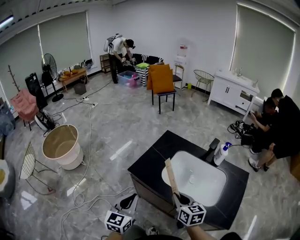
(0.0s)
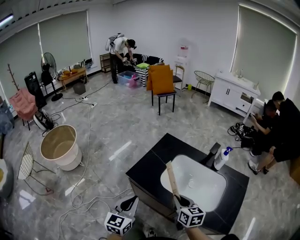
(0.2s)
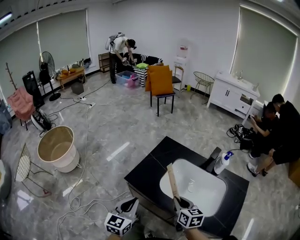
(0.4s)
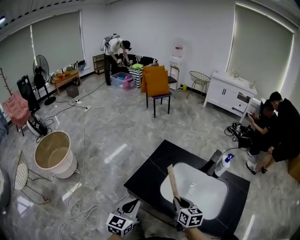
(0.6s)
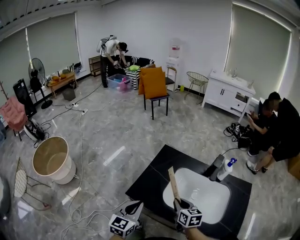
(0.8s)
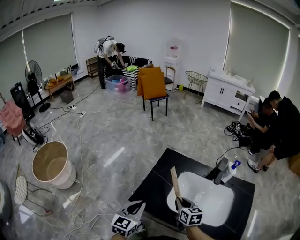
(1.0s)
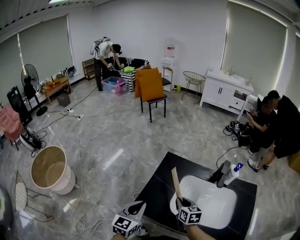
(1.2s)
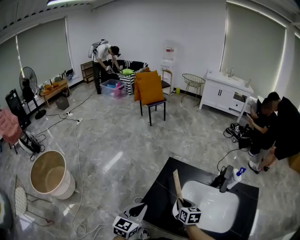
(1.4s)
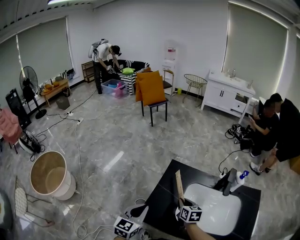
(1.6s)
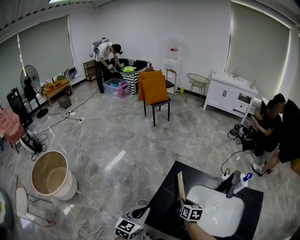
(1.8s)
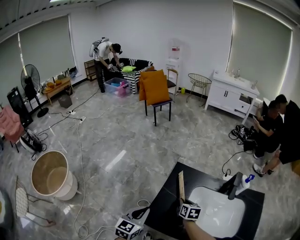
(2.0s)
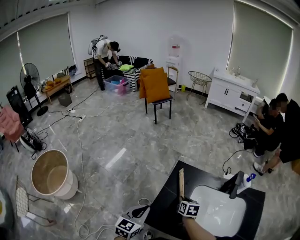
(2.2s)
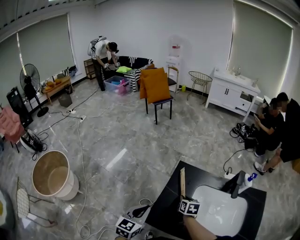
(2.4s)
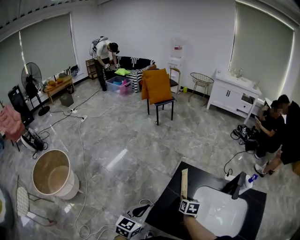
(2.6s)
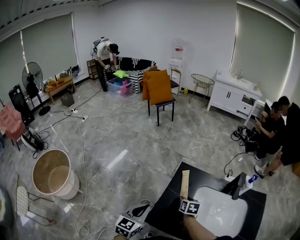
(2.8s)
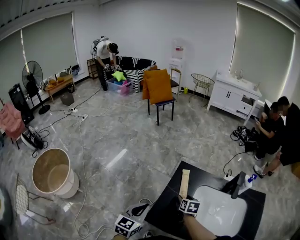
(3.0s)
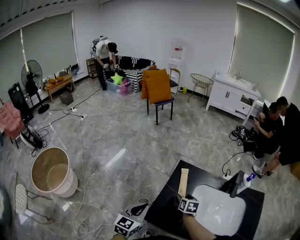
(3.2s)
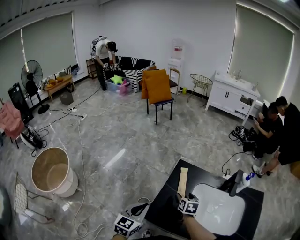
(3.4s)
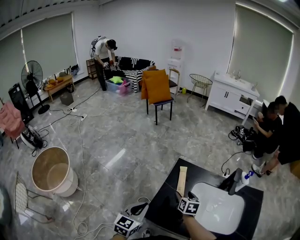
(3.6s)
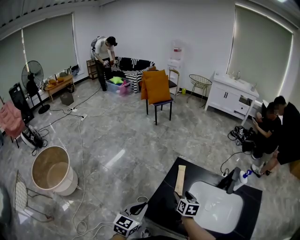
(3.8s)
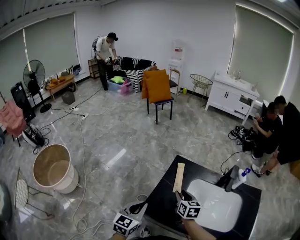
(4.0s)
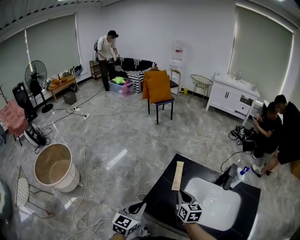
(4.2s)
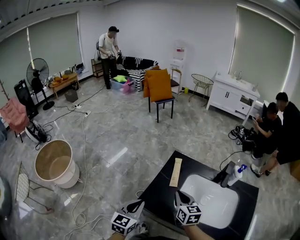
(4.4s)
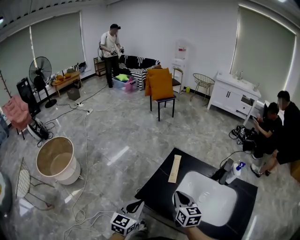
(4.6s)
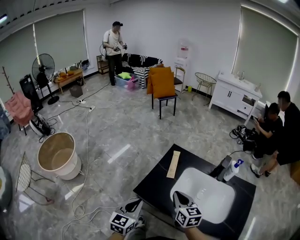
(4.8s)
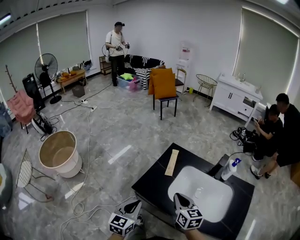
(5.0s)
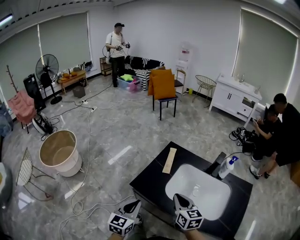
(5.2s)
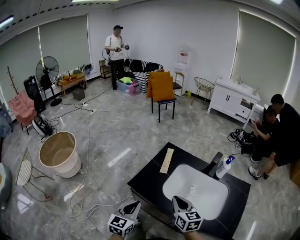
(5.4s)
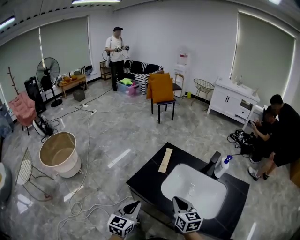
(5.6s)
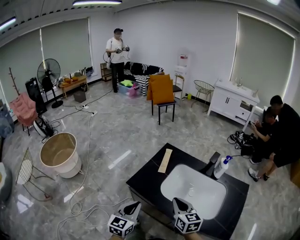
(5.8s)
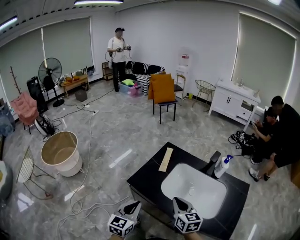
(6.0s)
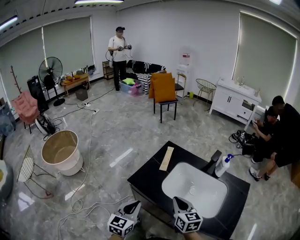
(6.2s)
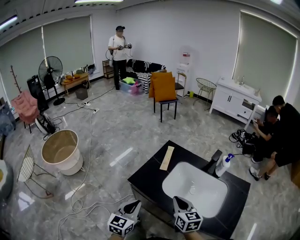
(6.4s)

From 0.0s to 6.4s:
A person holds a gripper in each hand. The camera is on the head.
From 0.0s to 1.6s: Both grippers move forward, roughly 25 cm. The right gripper changes its angle by some 20 degrees.
From 1.6s to 3.2s: The right gripper ends up roughly 5 cm from where it was, and opens up. Meanwhile the left gripper ends up roughly 5 cm from where it was.
From 3.2s to 4.8s: The left gripper moves backward and to the right, approximately 15 cm, while the right gripper shifts some 25 cm backward and upward, changes its angle by about 30 degrees, and closes.
From 4.8s to 6.4s: The grippers both shift backward and to the right by some 10 cm.

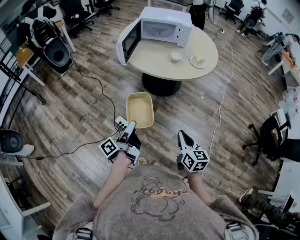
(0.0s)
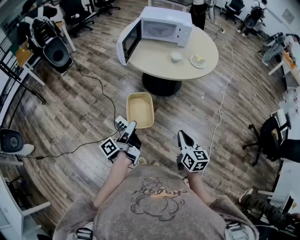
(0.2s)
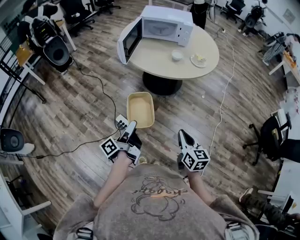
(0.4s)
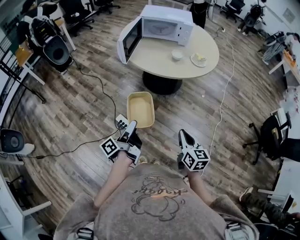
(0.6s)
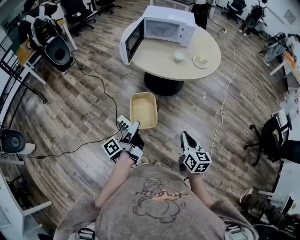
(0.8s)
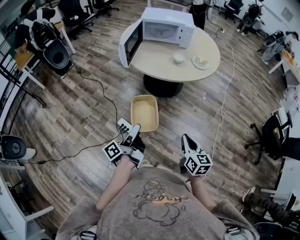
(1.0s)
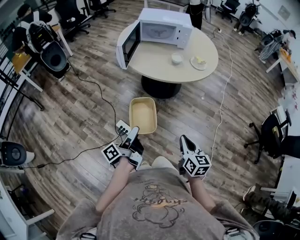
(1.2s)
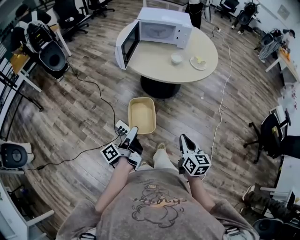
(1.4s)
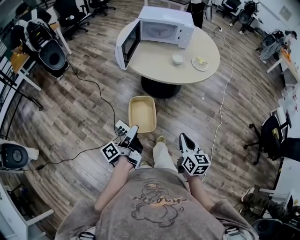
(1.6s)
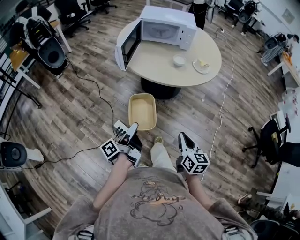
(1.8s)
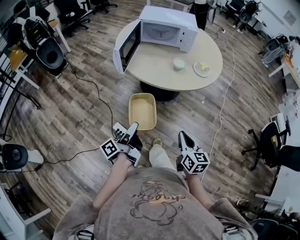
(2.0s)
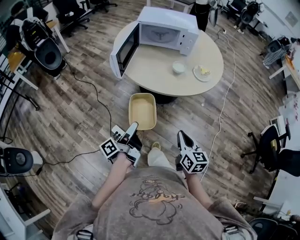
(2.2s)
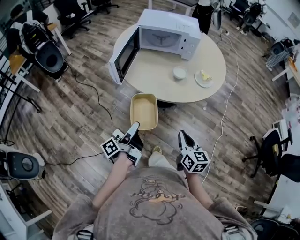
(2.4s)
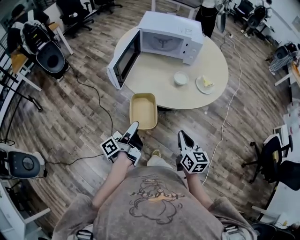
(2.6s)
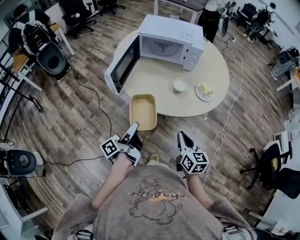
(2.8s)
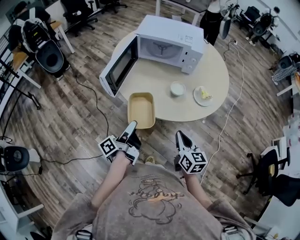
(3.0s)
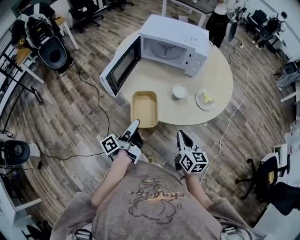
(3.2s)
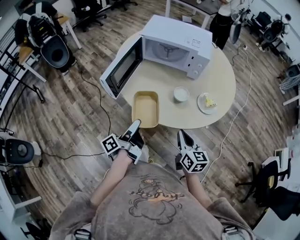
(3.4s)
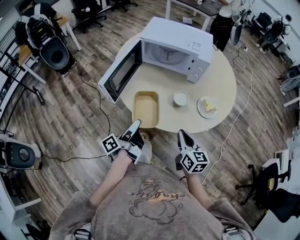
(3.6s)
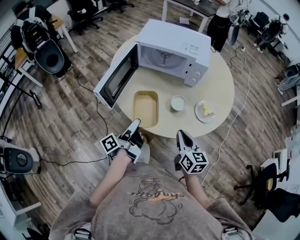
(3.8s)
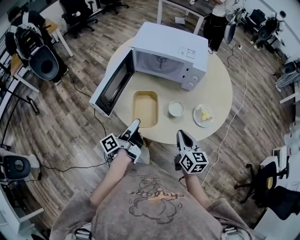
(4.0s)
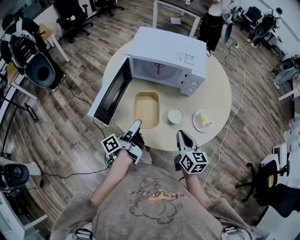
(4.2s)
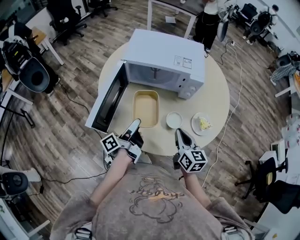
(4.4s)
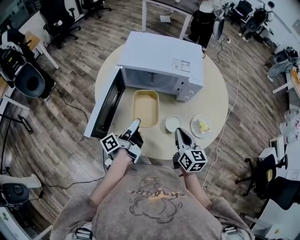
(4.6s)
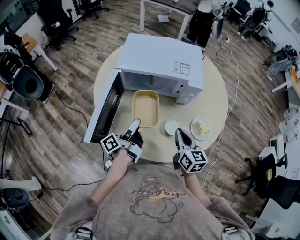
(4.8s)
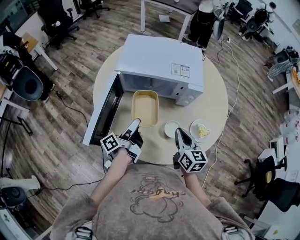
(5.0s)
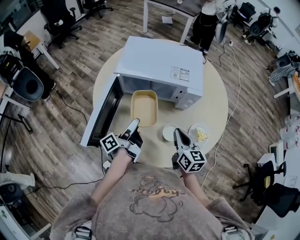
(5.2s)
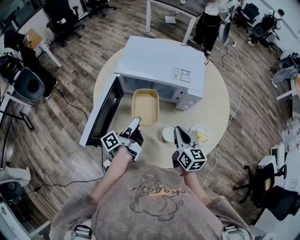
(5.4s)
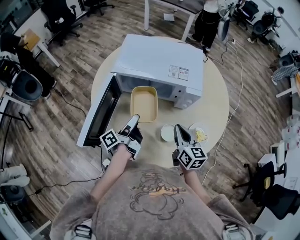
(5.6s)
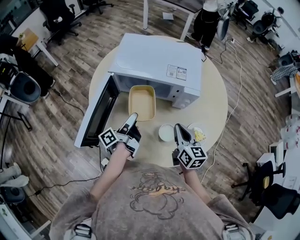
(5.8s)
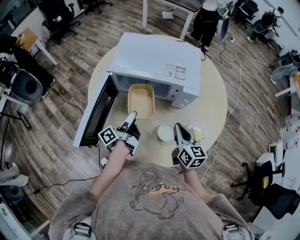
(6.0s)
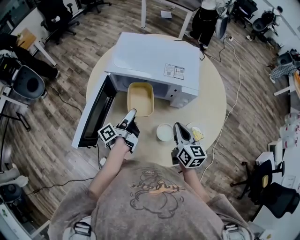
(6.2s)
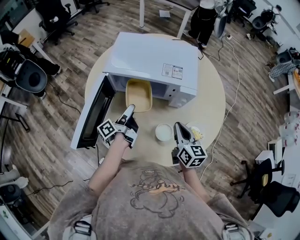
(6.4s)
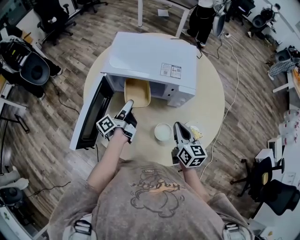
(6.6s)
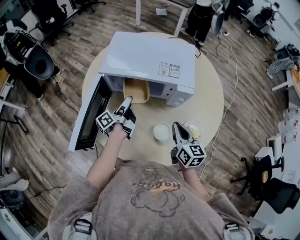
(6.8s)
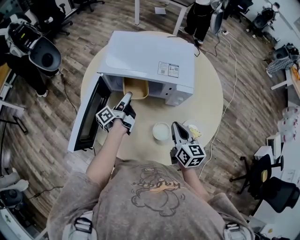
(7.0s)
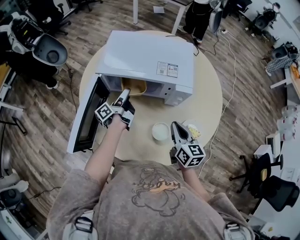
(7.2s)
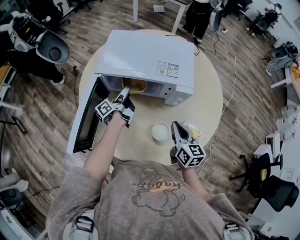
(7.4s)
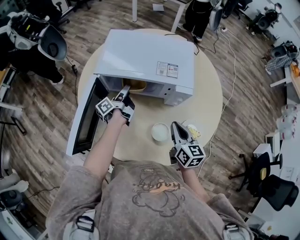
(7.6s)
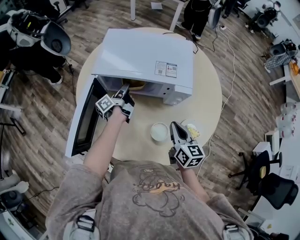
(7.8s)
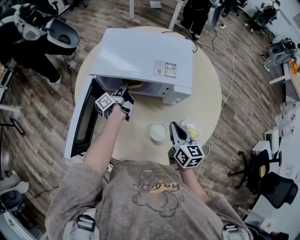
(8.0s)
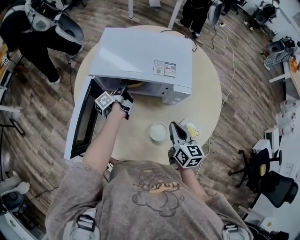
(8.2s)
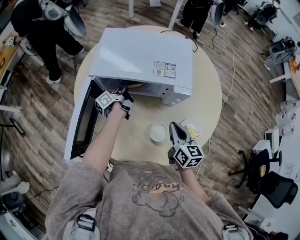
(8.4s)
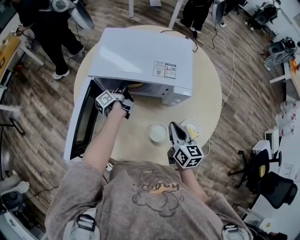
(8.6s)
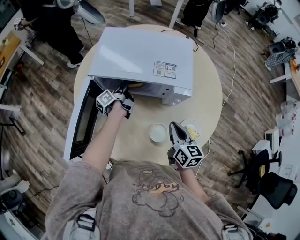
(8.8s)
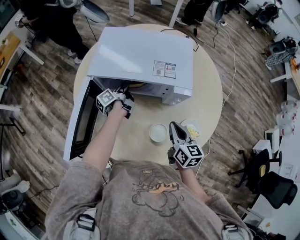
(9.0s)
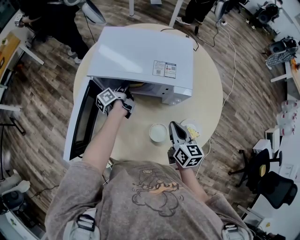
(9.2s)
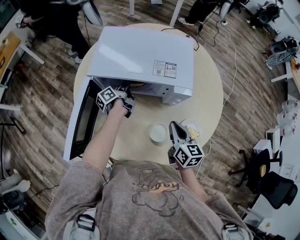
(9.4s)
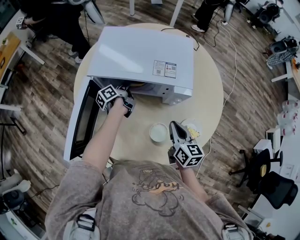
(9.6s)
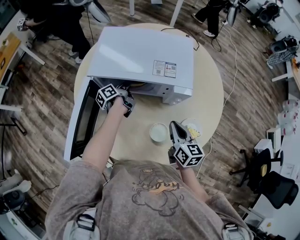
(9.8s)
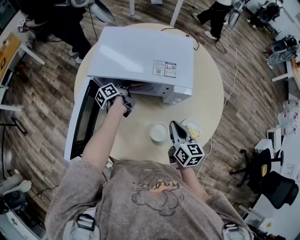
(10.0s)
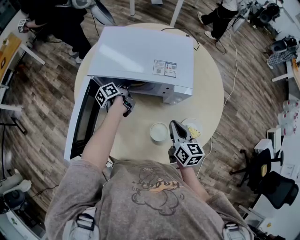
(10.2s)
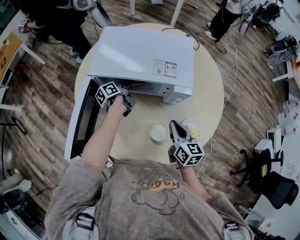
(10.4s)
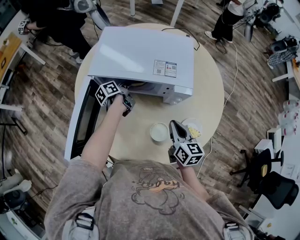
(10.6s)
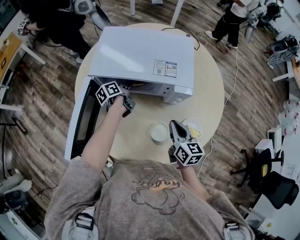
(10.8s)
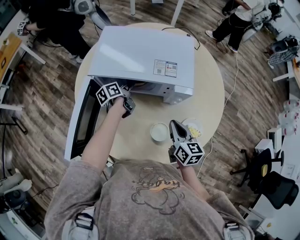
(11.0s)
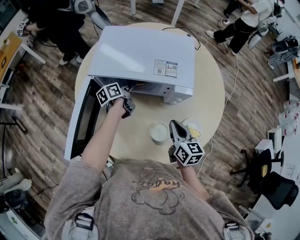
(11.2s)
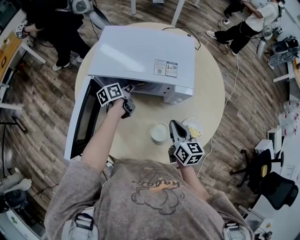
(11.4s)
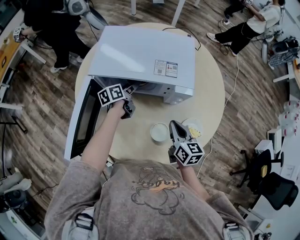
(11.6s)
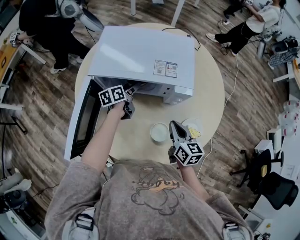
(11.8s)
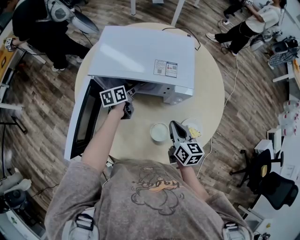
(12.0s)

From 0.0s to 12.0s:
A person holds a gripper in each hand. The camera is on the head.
From 0.0s to 1.6s: There are only small adjustments of the grippers.
From 1.6s to 3.0s: Both grippers travel together forward, roughly 30 cm.
From 3.0s to 4.4s: The grippers both shift forward by some 20 cm.
From 4.4s to 6.0s: Both grippers travel together forward, about 10 cm.
From 6.0s to 7.6s: The left gripper travels forward by about 15 cm.
From 7.6s to 9.0s: The left gripper moves approximately 5 cm.
From 9.0s to 10.4s: There are only small adjustments of the grippers.
From 10.4s to 12.0s: The left gripper turns by about 30 degrees, and opens up.

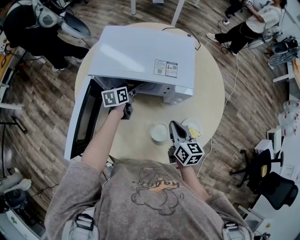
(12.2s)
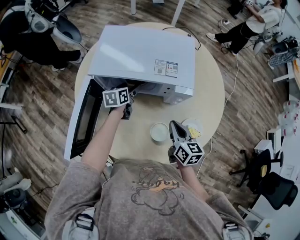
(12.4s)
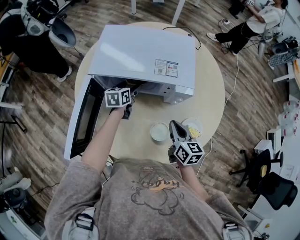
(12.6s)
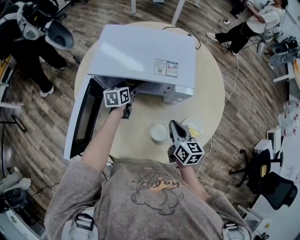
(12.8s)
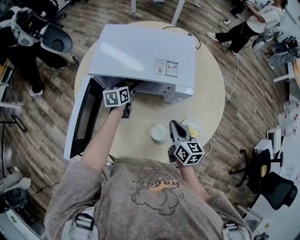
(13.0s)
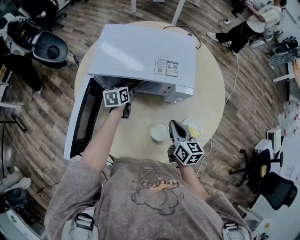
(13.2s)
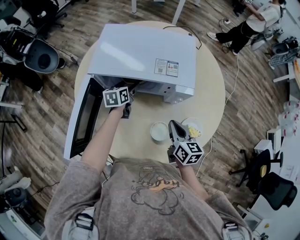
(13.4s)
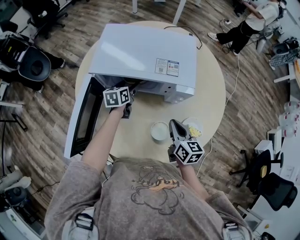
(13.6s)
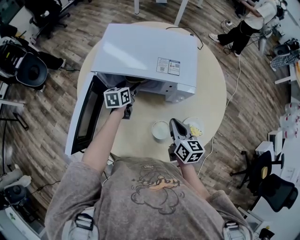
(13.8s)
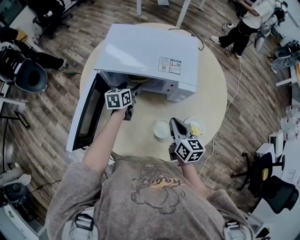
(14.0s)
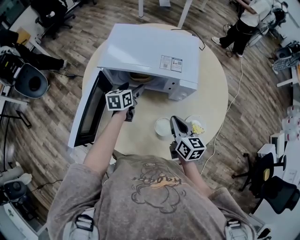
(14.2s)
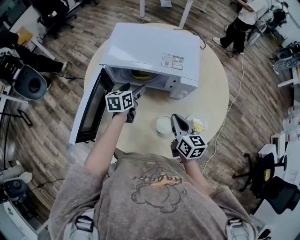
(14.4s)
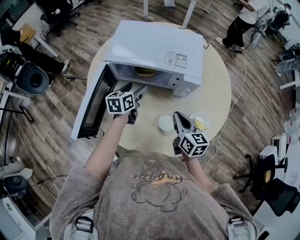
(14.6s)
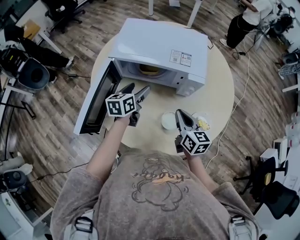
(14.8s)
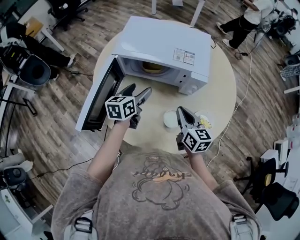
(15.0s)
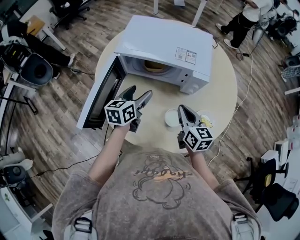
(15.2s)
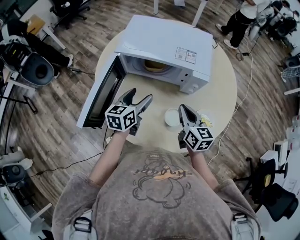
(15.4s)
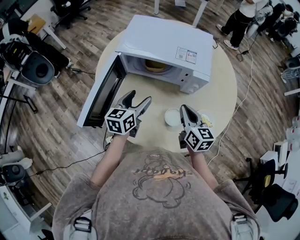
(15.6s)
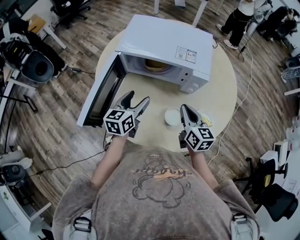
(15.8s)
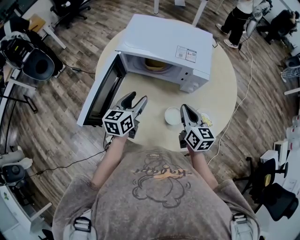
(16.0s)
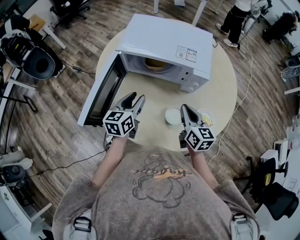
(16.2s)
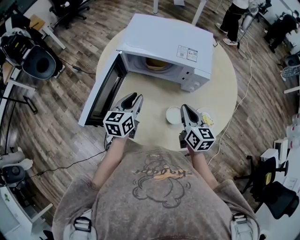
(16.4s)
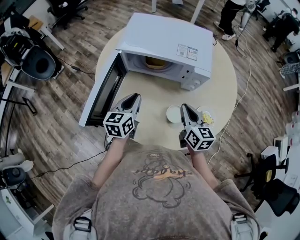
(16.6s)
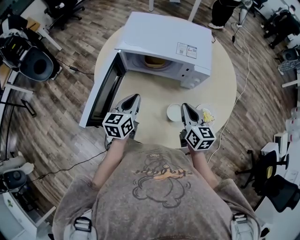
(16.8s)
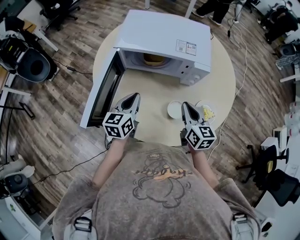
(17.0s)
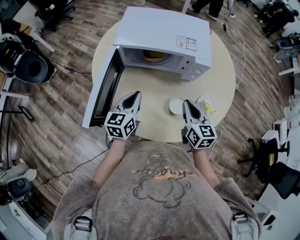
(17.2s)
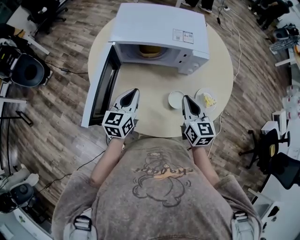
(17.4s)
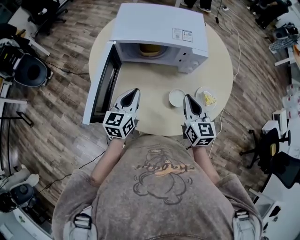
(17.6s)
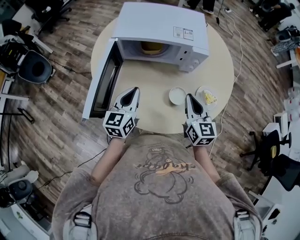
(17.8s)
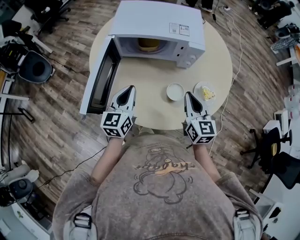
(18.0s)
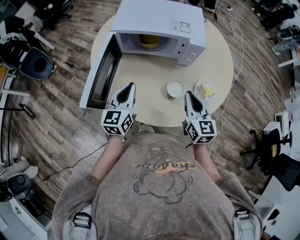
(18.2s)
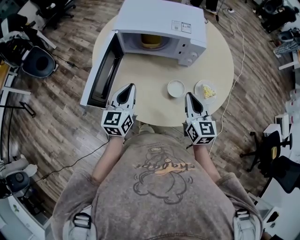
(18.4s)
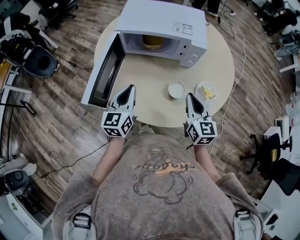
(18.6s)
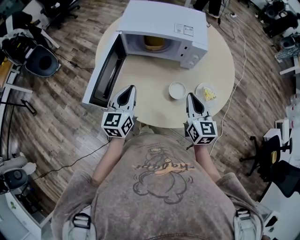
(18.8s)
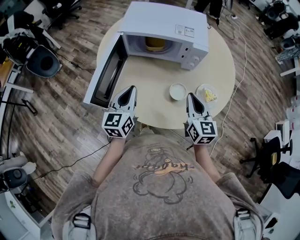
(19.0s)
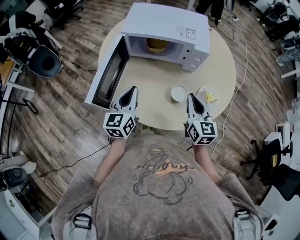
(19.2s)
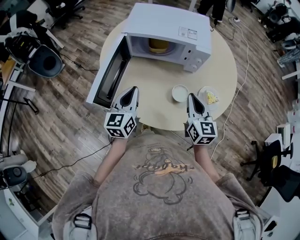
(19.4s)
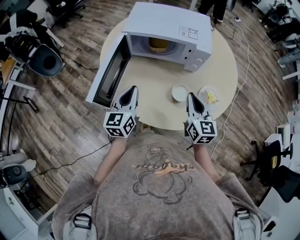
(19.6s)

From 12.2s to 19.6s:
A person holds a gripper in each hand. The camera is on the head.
From 12.2s to 13.6s: There are only small adjustments of the grippers.
From 13.6s to 15.2s: The right gripper moves some 5 cm. Meanwhile the left gripper is displaced backward and upward by approximately 20 cm.
From 15.2s to 16.6s: The left gripper changes place by roughly 5 cm, and closes.
From 16.6s to 18.2s: The two grippers go approximately 5 cm backward.
From 18.2s to 19.6s: The grippers move only a little.
